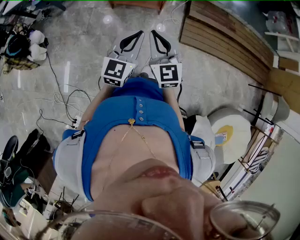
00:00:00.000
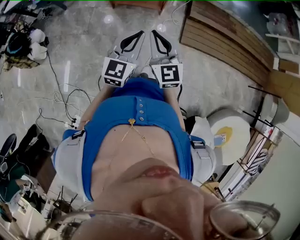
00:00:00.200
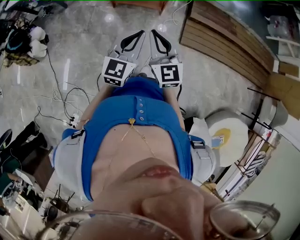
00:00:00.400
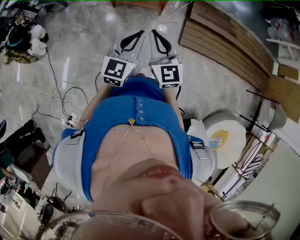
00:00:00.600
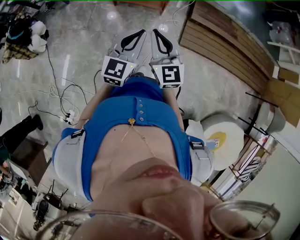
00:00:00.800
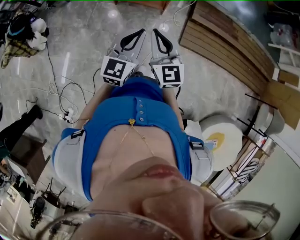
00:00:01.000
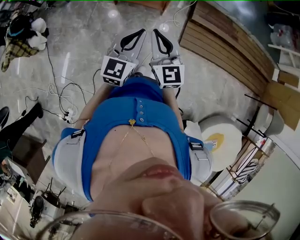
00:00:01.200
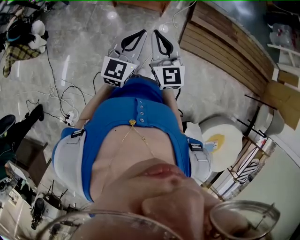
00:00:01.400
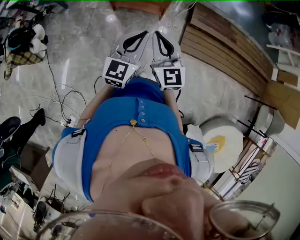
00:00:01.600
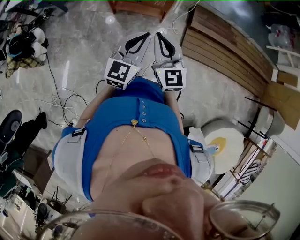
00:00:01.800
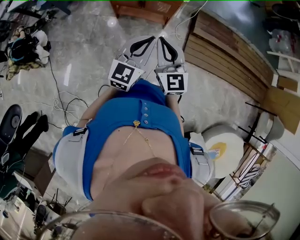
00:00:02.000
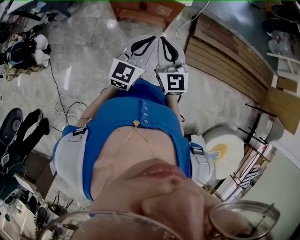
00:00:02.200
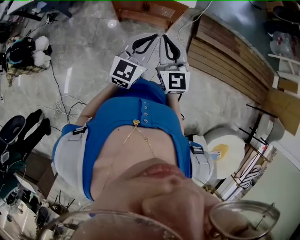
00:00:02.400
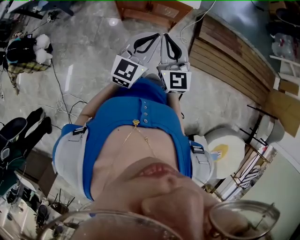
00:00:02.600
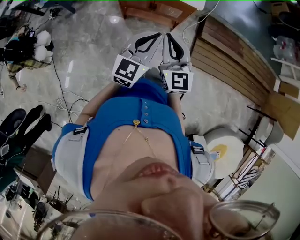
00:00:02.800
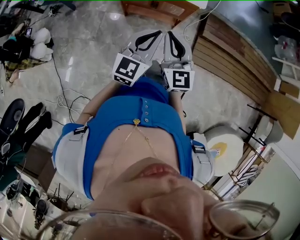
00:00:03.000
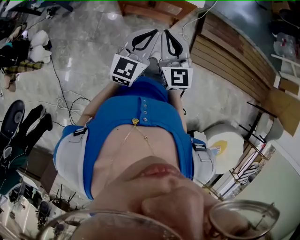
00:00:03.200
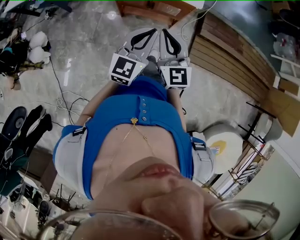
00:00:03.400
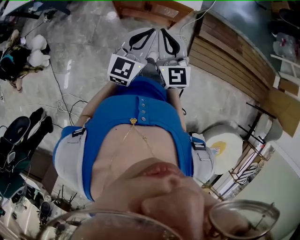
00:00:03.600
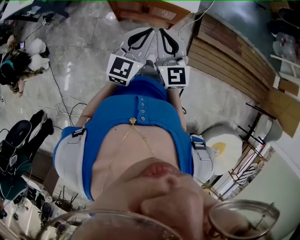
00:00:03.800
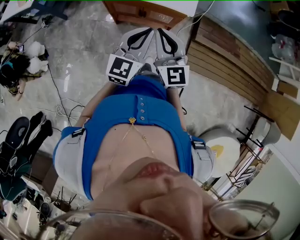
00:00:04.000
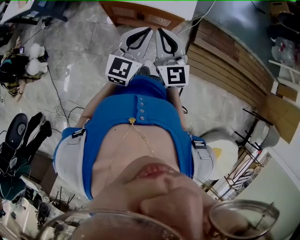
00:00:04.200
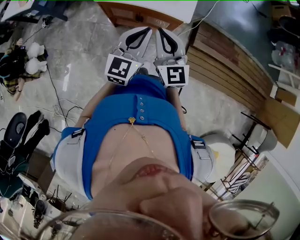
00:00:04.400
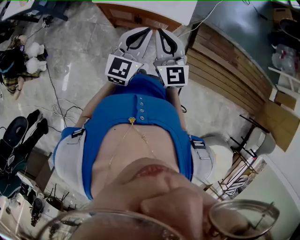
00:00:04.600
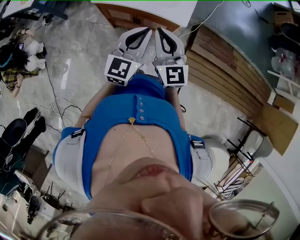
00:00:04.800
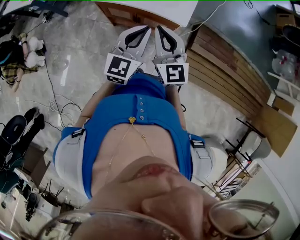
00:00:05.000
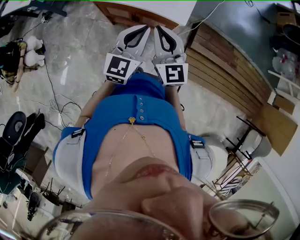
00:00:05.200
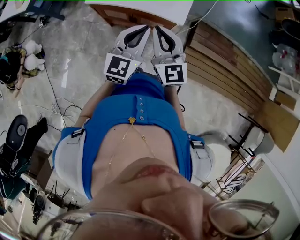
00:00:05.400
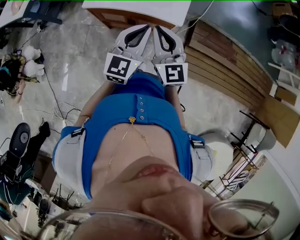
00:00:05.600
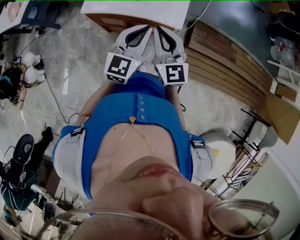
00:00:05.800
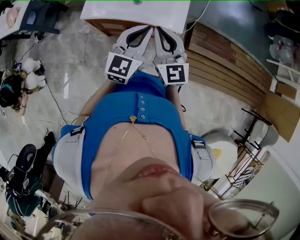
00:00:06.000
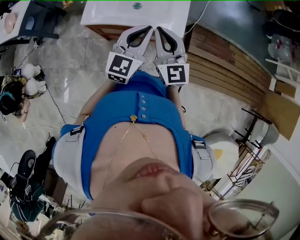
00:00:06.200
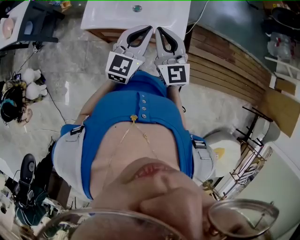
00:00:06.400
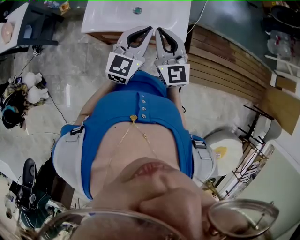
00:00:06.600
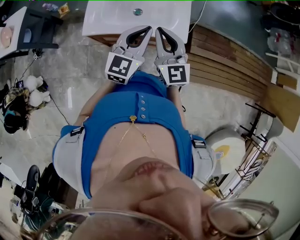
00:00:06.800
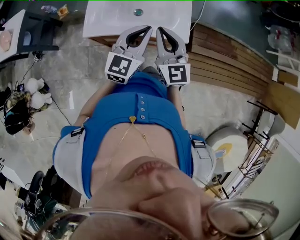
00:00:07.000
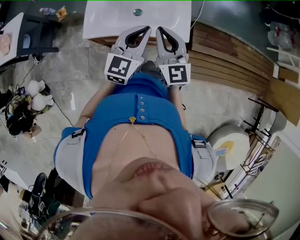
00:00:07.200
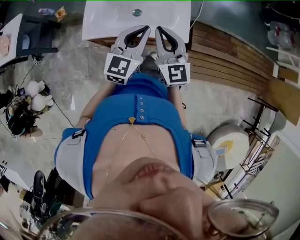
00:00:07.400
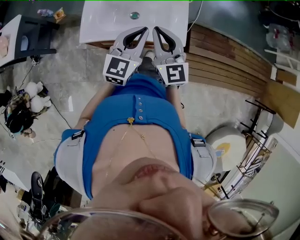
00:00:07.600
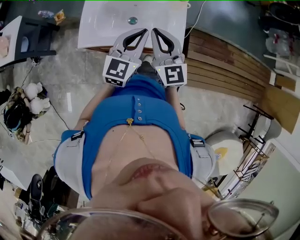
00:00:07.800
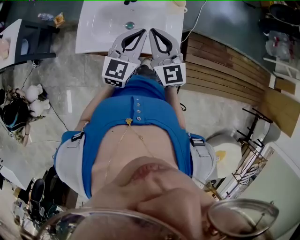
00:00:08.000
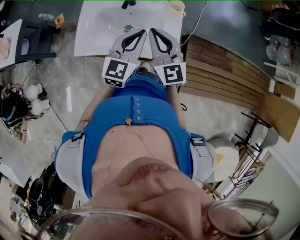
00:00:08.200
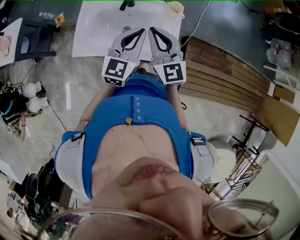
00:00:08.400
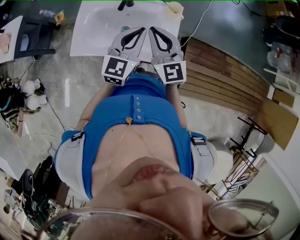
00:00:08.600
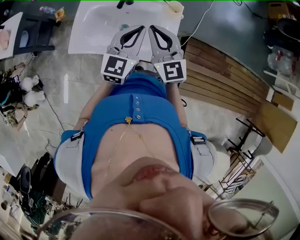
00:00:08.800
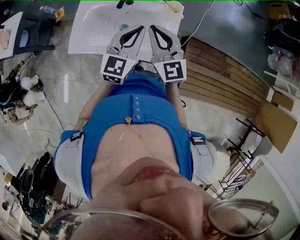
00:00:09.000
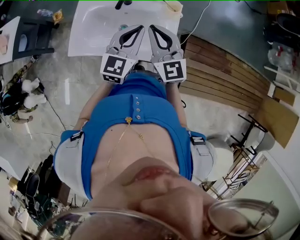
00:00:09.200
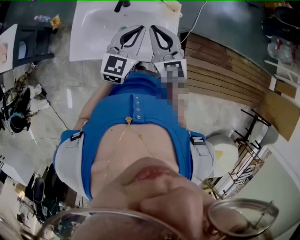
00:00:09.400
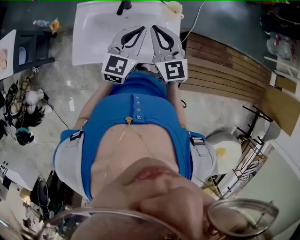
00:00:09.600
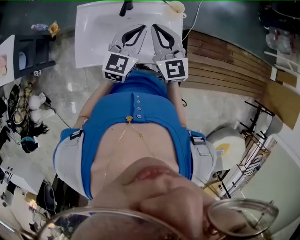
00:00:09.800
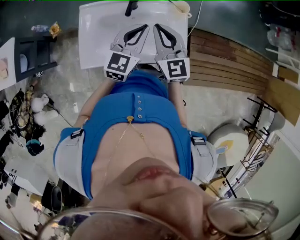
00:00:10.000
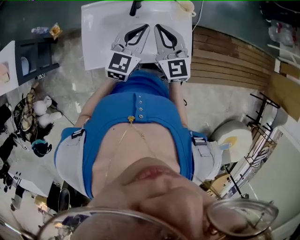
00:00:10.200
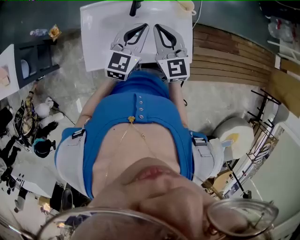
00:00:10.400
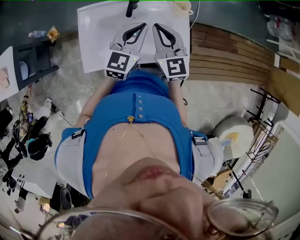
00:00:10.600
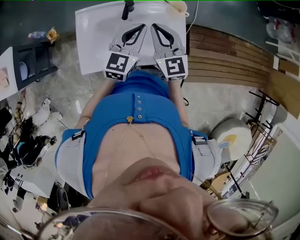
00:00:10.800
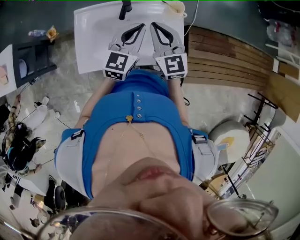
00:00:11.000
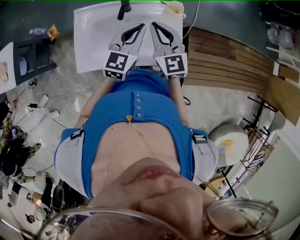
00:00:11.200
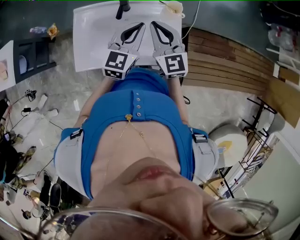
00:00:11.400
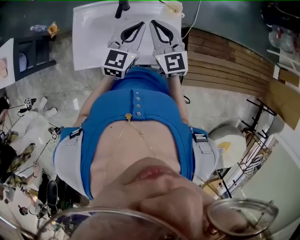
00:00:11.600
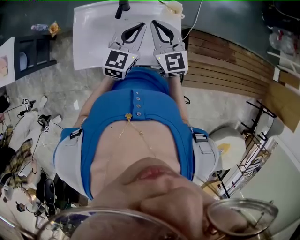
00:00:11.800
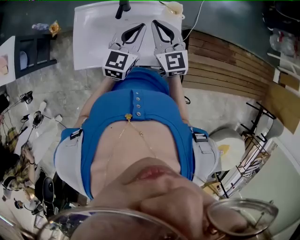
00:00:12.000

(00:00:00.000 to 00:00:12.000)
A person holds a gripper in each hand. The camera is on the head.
00:00:00.000 - 00:00:01.600: The grippers both shift forward by some 5 cm.
00:00:01.600 - 00:00:03.000: Both grippers travel together forward and to the left, roughly 15 cm.
00:00:03.000 - 00:00:04.400: The two grippers go approximately 15 cm forward.
00:00:04.400 - 00:00:06.000: The two grippers go roughly 10 cm forward.
00:00:06.000 - 00:00:07.600: The two grippers go approximately 10 cm forward.
00:00:07.600 - 00:00:09.000: The two grippers go about 15 cm forward and to the right.
00:00:09.000 - 00:00:10.400: The right gripper shifts about 10 cm to the left, while the left gripper is displaced to the left and forward by roughly 10 cm.
00:00:10.400 - 00:00:12.000: Both grippers move to the right, approximately 5 cm.

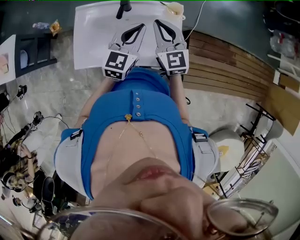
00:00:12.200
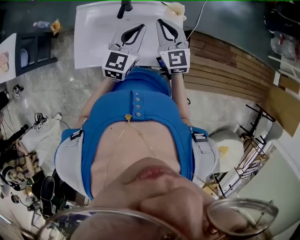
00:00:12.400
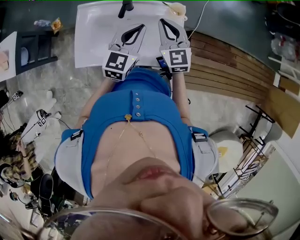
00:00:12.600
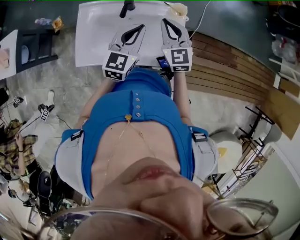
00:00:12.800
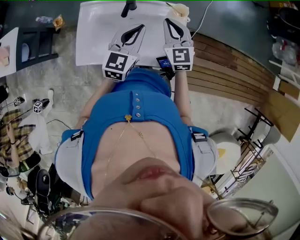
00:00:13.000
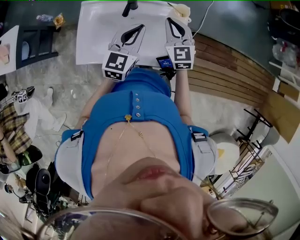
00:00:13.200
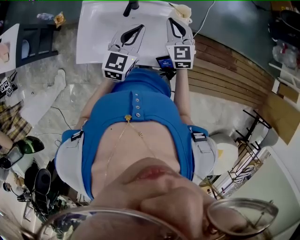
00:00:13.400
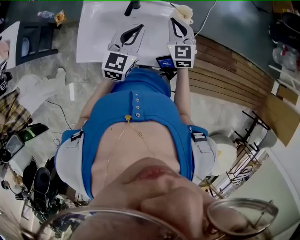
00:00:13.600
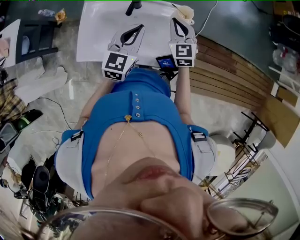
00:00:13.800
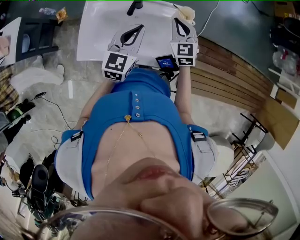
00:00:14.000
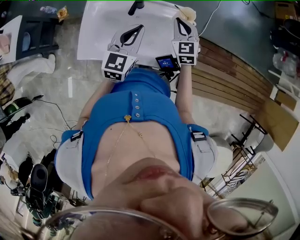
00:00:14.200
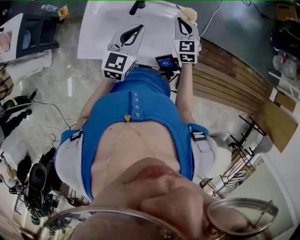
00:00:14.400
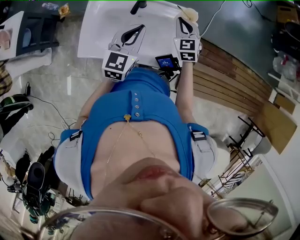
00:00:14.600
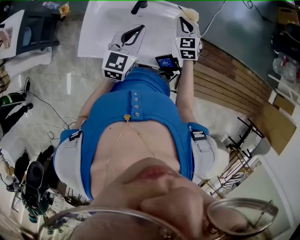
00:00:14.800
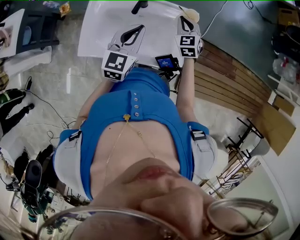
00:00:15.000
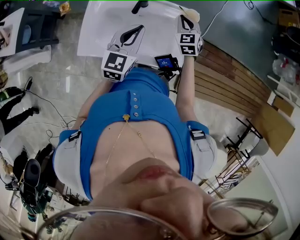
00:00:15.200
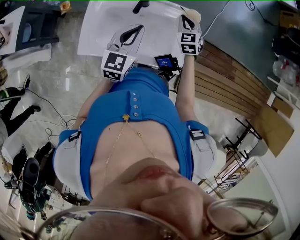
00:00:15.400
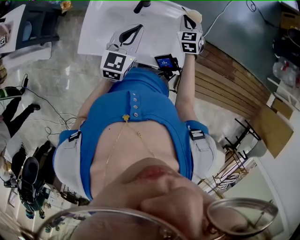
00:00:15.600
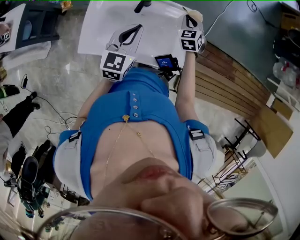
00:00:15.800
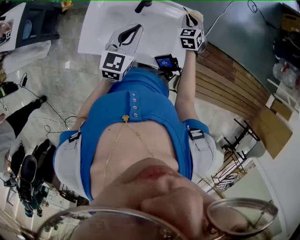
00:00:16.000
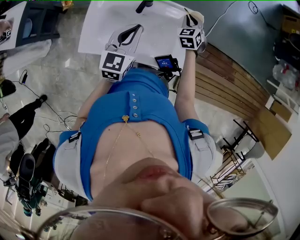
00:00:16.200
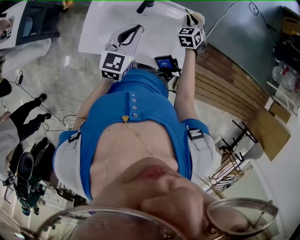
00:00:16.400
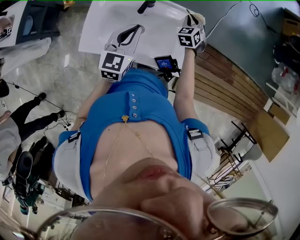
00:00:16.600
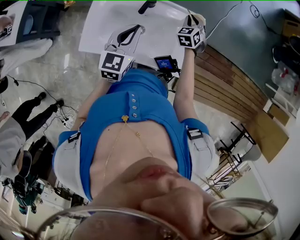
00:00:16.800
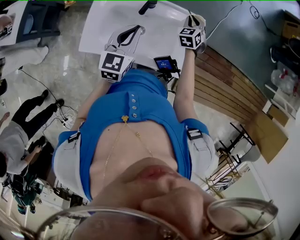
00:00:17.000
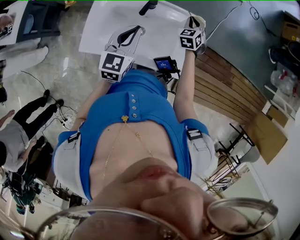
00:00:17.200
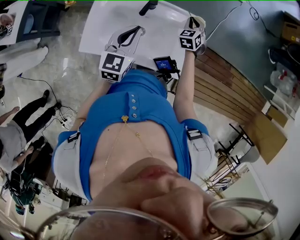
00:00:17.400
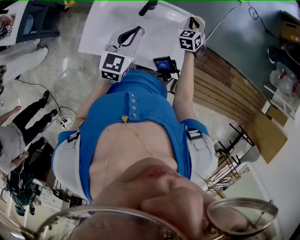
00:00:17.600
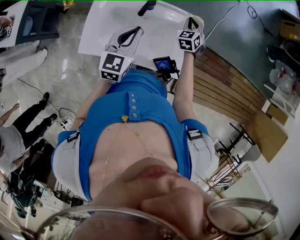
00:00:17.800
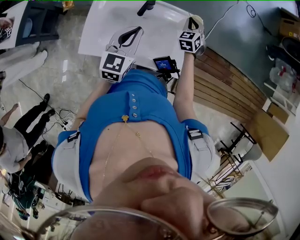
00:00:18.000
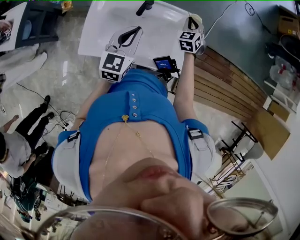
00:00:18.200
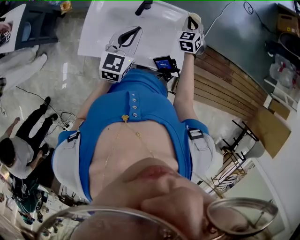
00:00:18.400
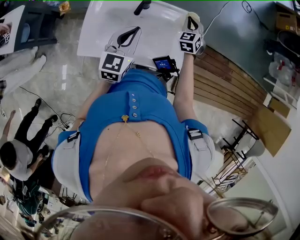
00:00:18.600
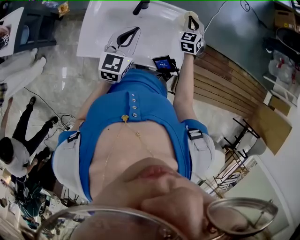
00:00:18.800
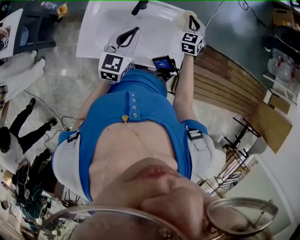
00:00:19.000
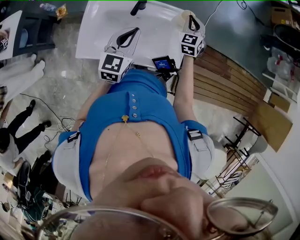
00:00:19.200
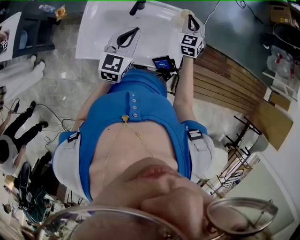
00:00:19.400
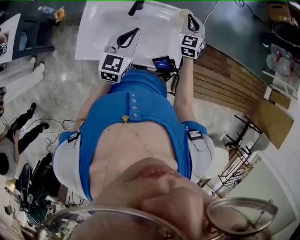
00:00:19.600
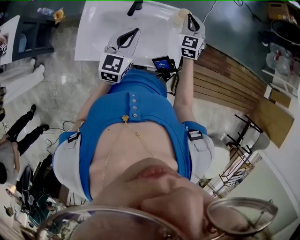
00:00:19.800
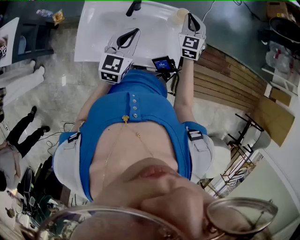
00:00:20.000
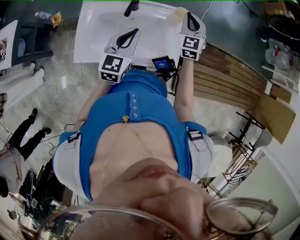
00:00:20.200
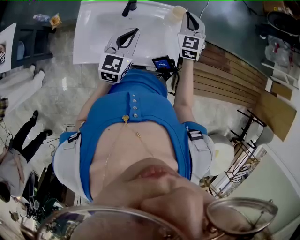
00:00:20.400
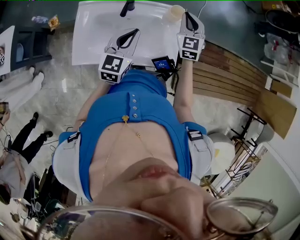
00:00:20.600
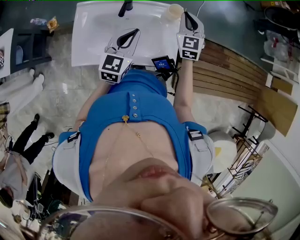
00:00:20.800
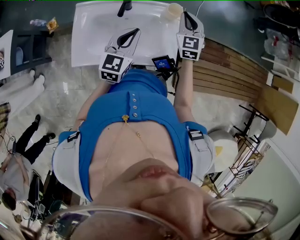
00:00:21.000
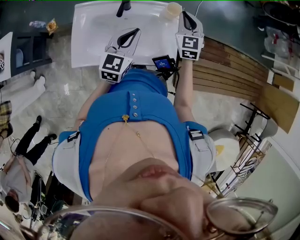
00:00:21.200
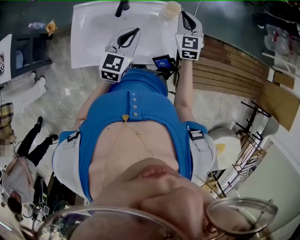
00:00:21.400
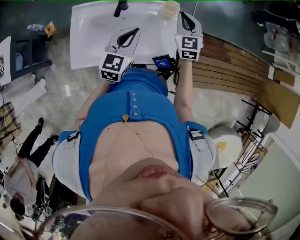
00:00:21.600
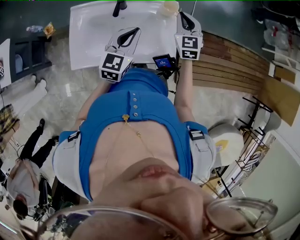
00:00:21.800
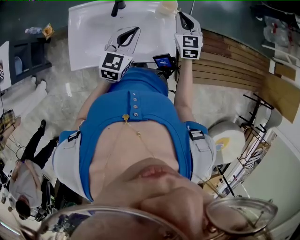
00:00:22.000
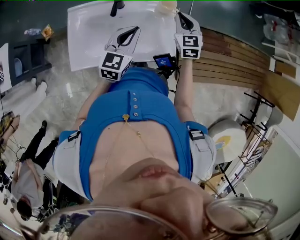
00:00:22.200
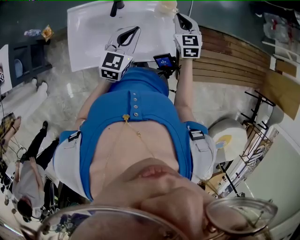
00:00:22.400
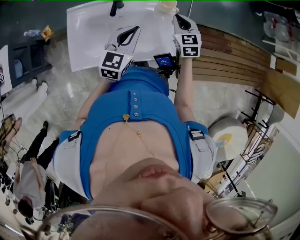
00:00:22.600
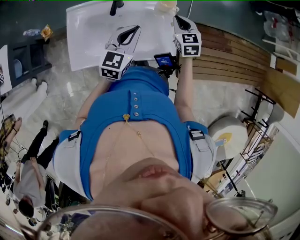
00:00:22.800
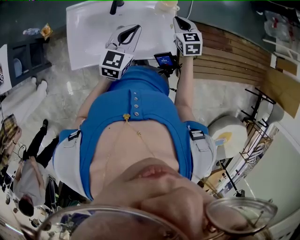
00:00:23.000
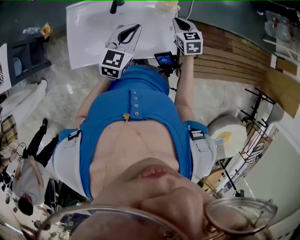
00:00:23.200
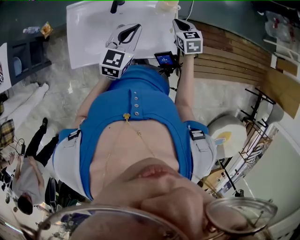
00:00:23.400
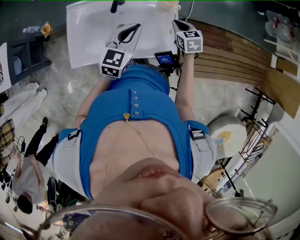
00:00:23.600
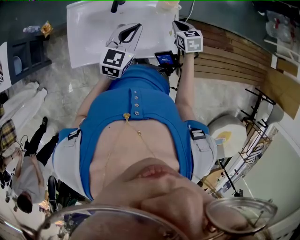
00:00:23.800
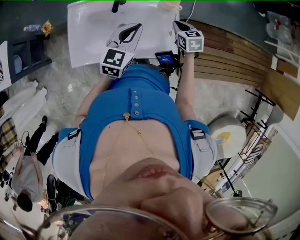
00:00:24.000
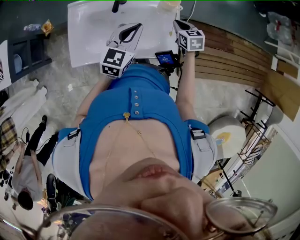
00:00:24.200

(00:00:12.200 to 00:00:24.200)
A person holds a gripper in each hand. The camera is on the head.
00:00:12.200 - 00:00:13.800: The right gripper is displaced downward by about 5 cm.
00:00:13.800 - 00:00:15.200: The right gripper shifts some 5 cm downward.
00:00:15.200 - 00:00:16.600: The right gripper ends up roughly 5 cm from where it was.
00:00:16.600 - 00:00:18.200: There are only small adjustments of the grippers.
00:00:18.200 - 00:00:19.800: The right gripper is displaced upward by roughly 10 cm.
00:00:19.800 - 00:00:21.200: There are only small adjustments of the grippers.
00:00:21.200 - 00:00:22.600: The right gripper shifts approximately 5 cm downward.
00:00:22.600 - 00:00:24.200: The right gripper moves downward, some 10 cm, and swivels approximately 20 degrees.
